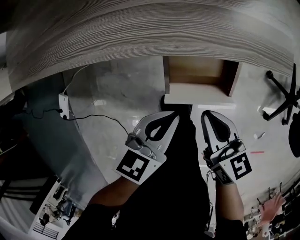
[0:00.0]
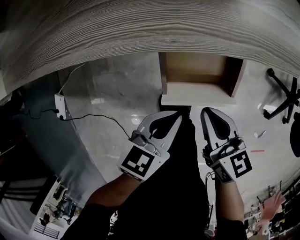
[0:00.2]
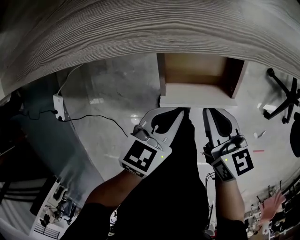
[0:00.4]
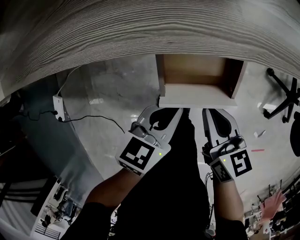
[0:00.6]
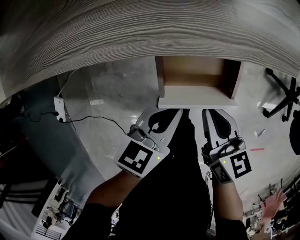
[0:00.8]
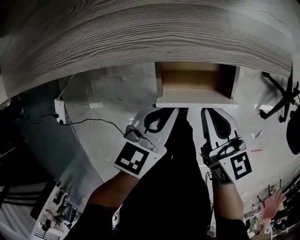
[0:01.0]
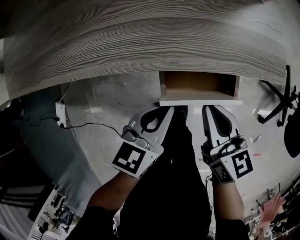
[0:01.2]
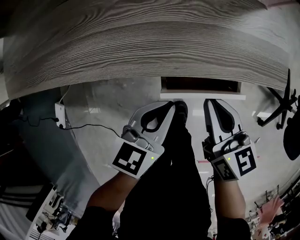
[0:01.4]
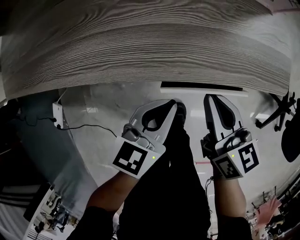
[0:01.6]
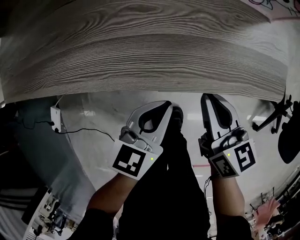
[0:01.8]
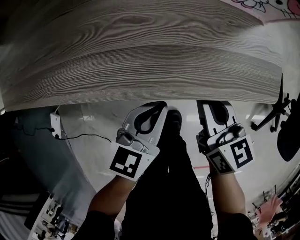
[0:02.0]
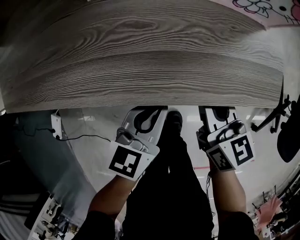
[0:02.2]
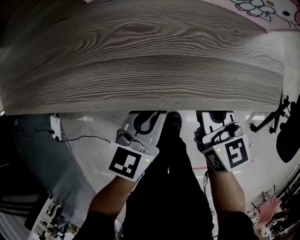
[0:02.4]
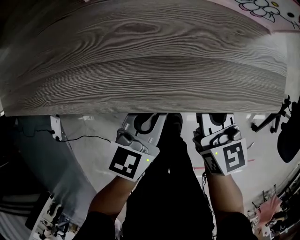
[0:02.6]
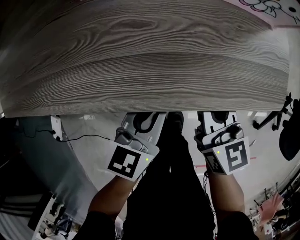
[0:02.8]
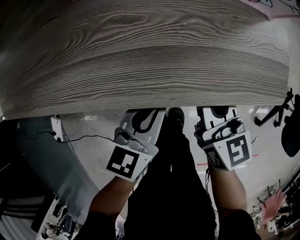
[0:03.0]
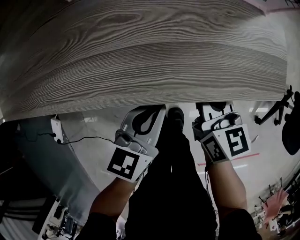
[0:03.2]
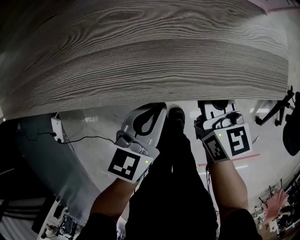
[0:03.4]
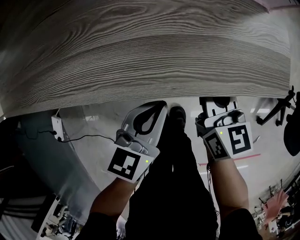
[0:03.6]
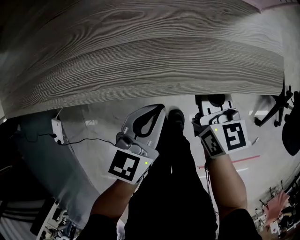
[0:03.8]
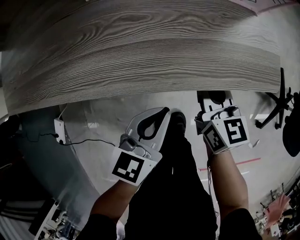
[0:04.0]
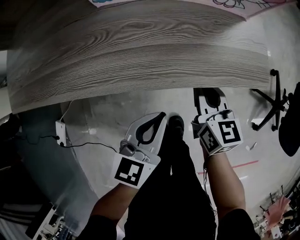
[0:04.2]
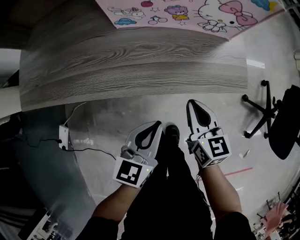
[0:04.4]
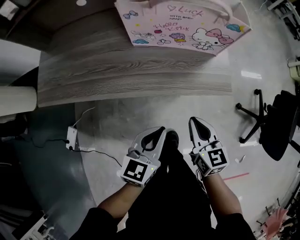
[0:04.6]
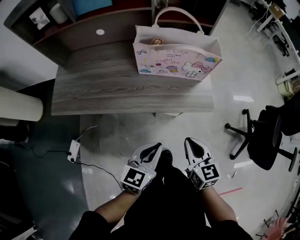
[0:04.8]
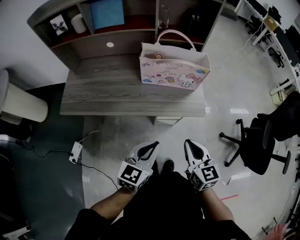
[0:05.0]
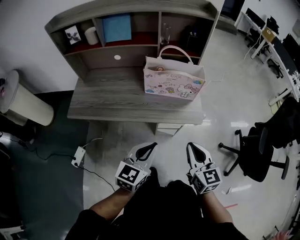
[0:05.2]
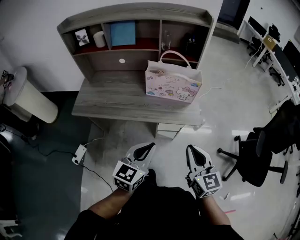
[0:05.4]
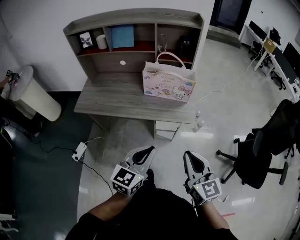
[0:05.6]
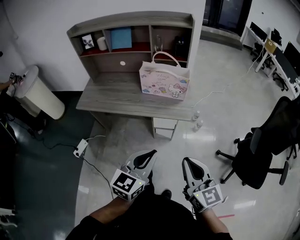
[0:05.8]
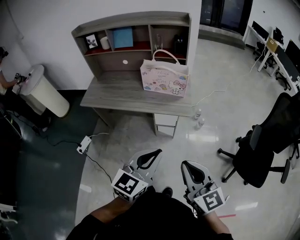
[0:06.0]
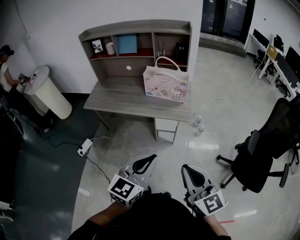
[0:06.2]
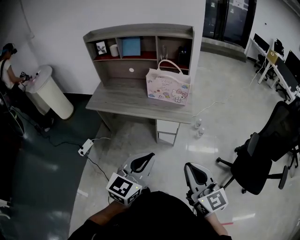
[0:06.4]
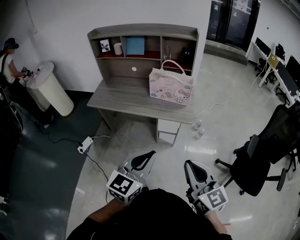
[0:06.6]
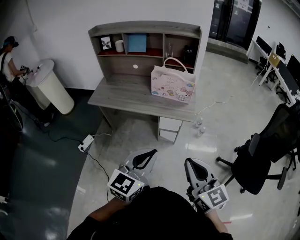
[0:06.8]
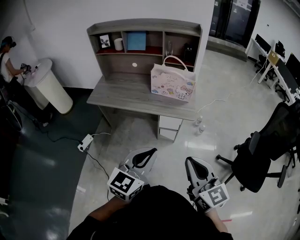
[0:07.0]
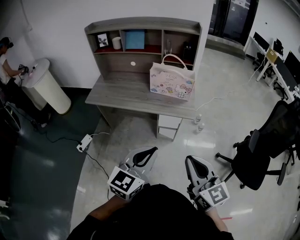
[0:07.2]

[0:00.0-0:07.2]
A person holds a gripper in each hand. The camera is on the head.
0.0 to 1.4 s: Both grippers travel together forward, approximately 5 cm.
1.4 to 2.8 s: Both grippers move forward, about 5 cm.
2.8 to 4.4 s: The left gripper heads upward and backward, covering roughly 10 cm. Meanwhile the right gripper heads backward, covering some 5 cm.
4.4 to 5.8 s: Both grippers travel together upward and backward, approximately 50 cm. The right gripper rotates roughly 30 degrees.
5.8 to 7.2 s: The left gripper travels backward and upward by about 10 cm. The right gripper shifts about 5 cm backward.

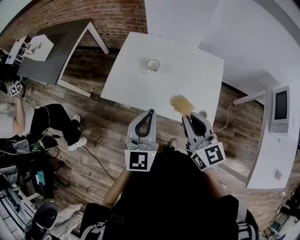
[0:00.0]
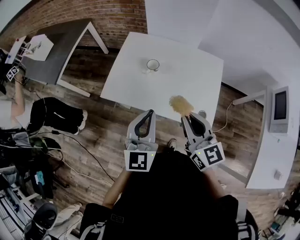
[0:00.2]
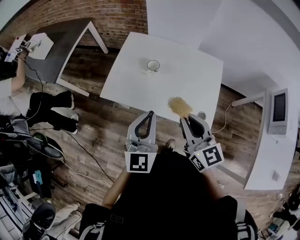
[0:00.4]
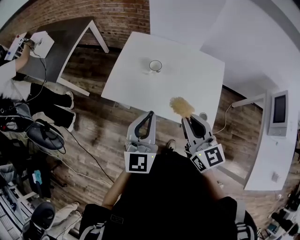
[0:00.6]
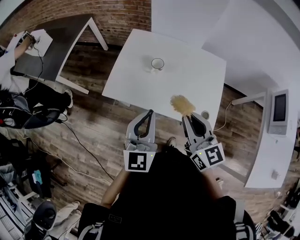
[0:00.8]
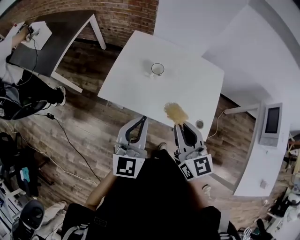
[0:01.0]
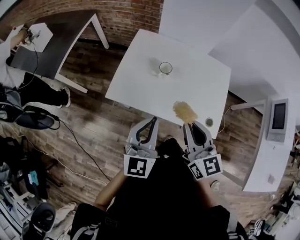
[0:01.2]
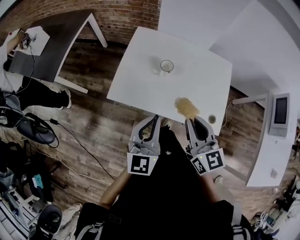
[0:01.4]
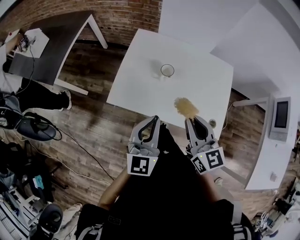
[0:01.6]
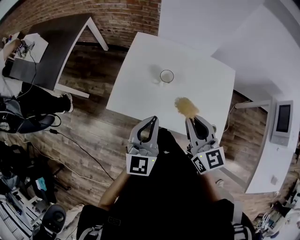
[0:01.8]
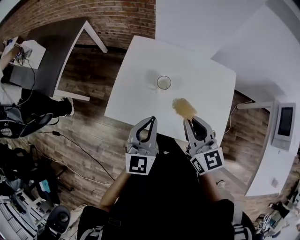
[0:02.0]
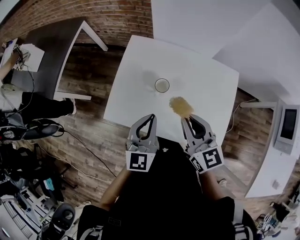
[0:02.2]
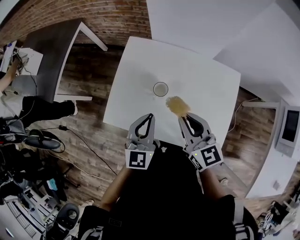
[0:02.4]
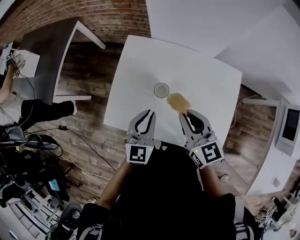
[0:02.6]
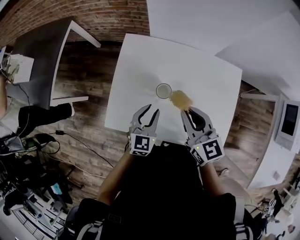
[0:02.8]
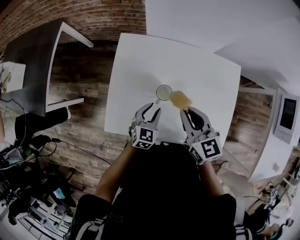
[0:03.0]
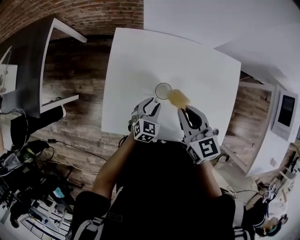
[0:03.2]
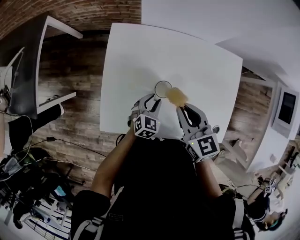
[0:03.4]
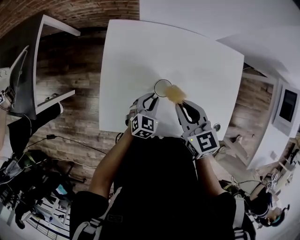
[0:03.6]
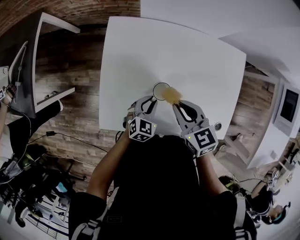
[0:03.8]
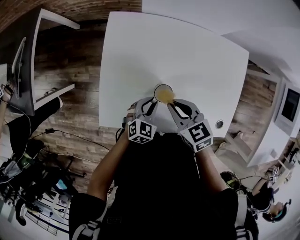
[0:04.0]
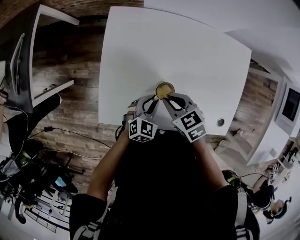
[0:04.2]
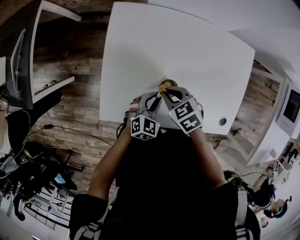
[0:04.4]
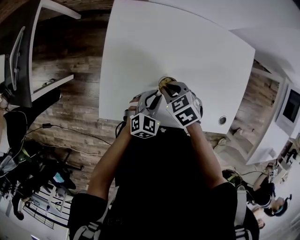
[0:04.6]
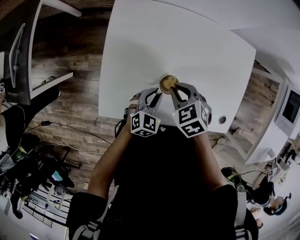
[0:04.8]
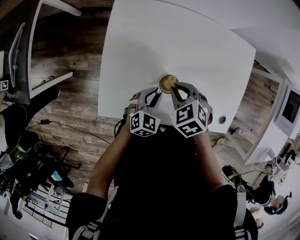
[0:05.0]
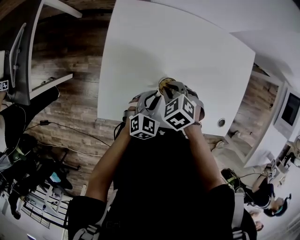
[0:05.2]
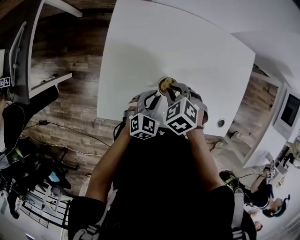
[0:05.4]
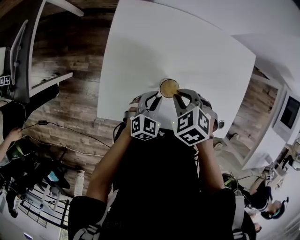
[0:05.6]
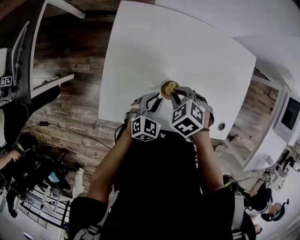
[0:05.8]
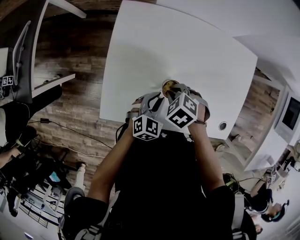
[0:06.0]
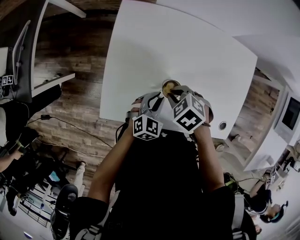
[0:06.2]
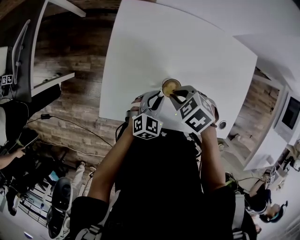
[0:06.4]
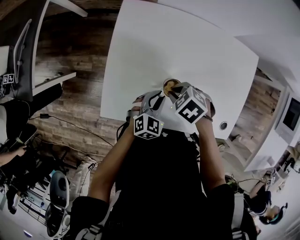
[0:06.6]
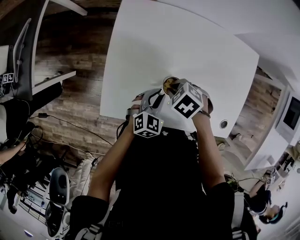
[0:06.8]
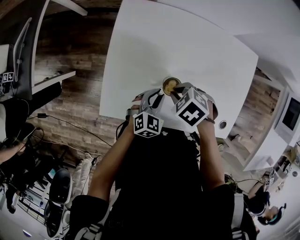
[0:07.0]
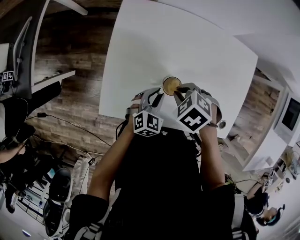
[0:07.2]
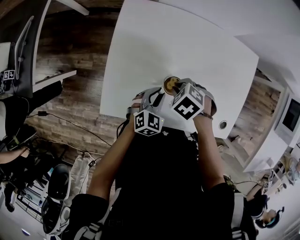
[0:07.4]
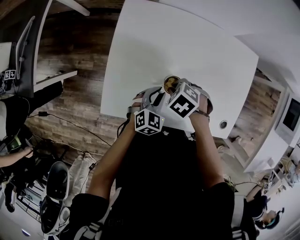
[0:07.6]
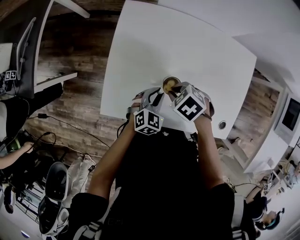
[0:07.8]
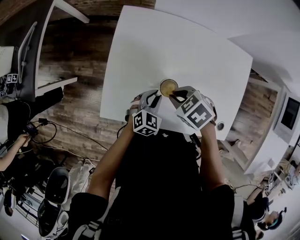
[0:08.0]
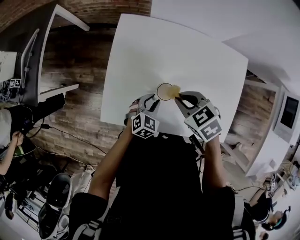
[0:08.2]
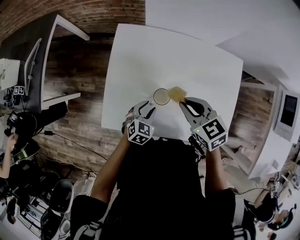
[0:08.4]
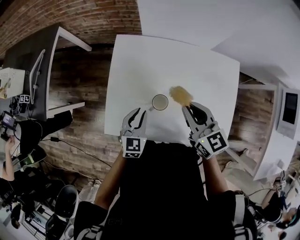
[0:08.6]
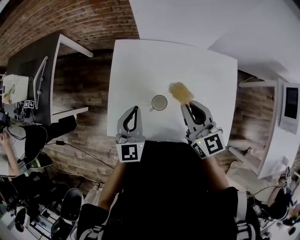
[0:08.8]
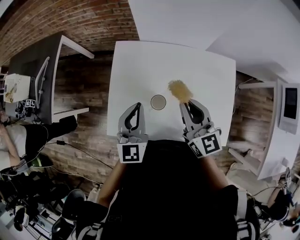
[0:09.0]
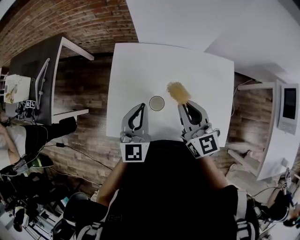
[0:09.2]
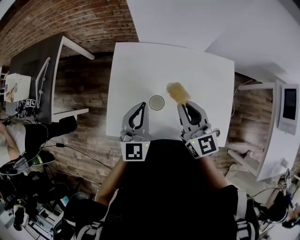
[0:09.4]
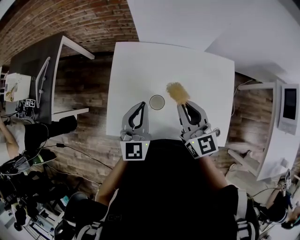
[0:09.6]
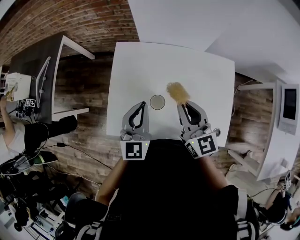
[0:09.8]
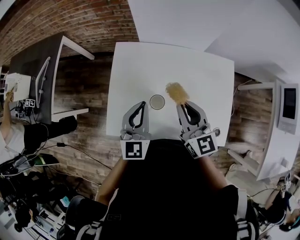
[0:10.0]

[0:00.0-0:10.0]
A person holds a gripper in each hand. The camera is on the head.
0.0 to 1.4 s: The grippers both shift to the left by some 10 cm.
1.4 to 2.8 s: The right gripper shifts about 20 cm forward, while the left gripper moves forward and downward, some 25 cm, turns by about 20 degrees, and opens.
2.8 to 4.2 s: The right gripper moves downward and to the left, roughly 20 cm, and tips its fingers downward by approximately 30 degrees. Meanwhile the left gripper shifts about 15 cm downward, and swivels roughly 30 degrees.
4.2 to 5.8 s: The right gripper swings up and down, about 5 cm each way, with 3 reversals, and changes its angle by roughly 30 degrees.
5.8 to 7.2 s: The grippers stay close to where they were, moving slightly.
7.2 to 8.6 s: The right gripper is displaced upward by some 15 cm, and angles its fingers upward, by about 60 degrees. Meanwhile the left gripper heads upward, covering some 10 cm, and rotates about 20 degrees.
8.6 to 10.0 s: The left gripper is displaced upward by about 15 cm, turns by some 20 degrees, and closes up.

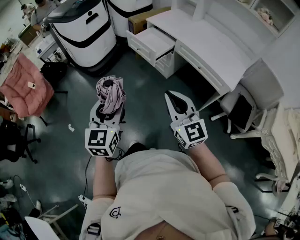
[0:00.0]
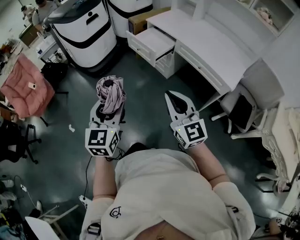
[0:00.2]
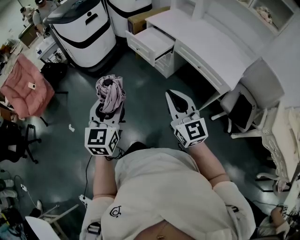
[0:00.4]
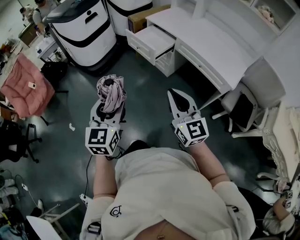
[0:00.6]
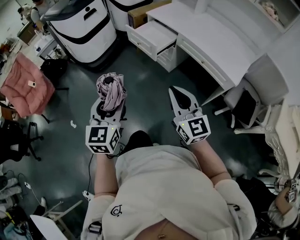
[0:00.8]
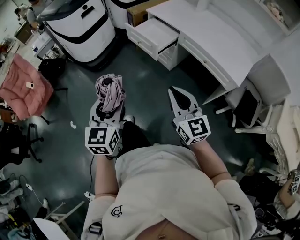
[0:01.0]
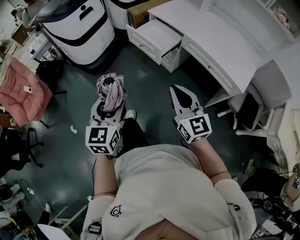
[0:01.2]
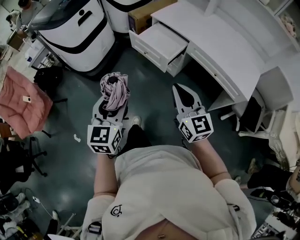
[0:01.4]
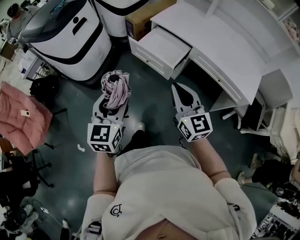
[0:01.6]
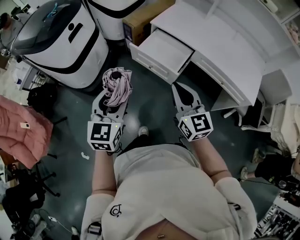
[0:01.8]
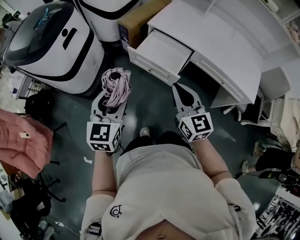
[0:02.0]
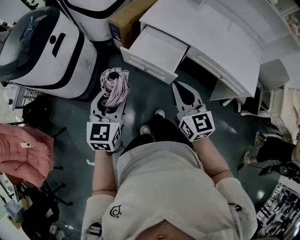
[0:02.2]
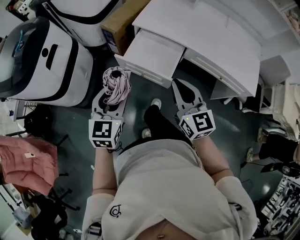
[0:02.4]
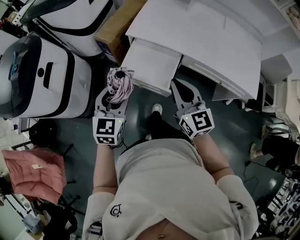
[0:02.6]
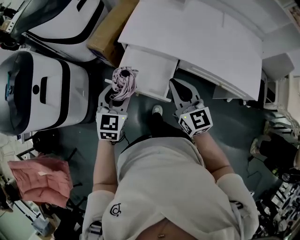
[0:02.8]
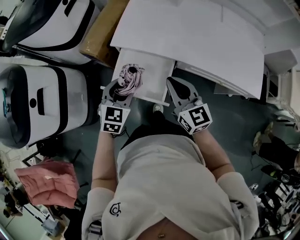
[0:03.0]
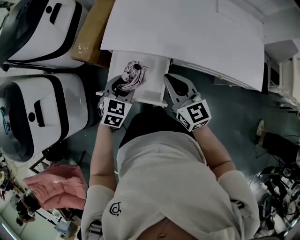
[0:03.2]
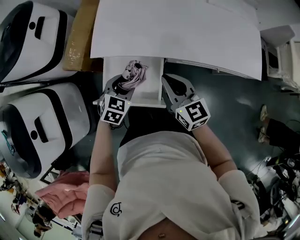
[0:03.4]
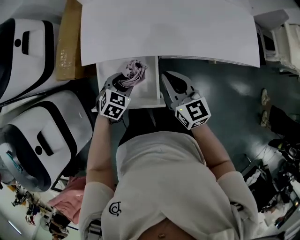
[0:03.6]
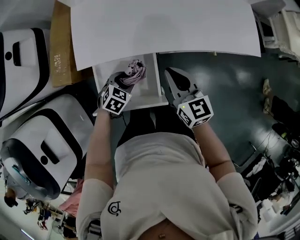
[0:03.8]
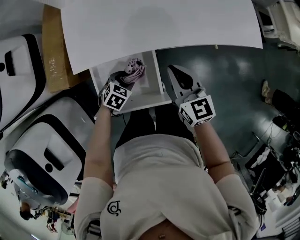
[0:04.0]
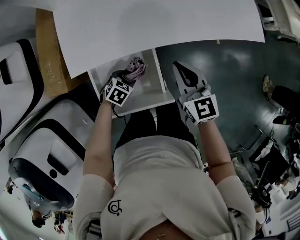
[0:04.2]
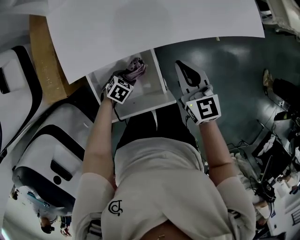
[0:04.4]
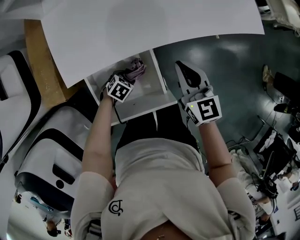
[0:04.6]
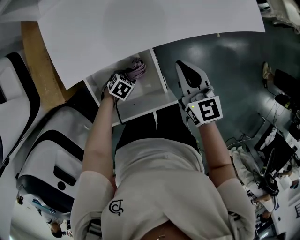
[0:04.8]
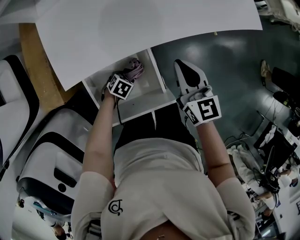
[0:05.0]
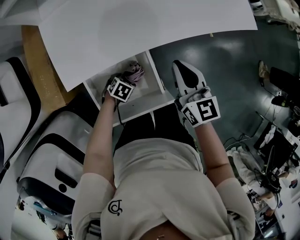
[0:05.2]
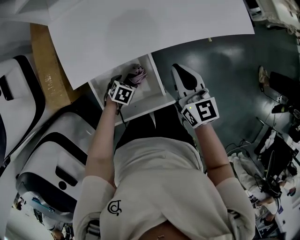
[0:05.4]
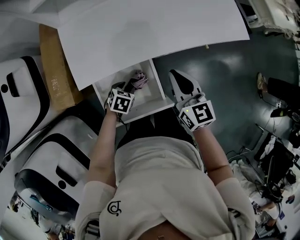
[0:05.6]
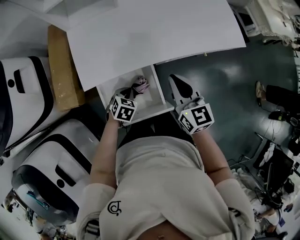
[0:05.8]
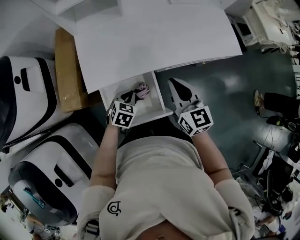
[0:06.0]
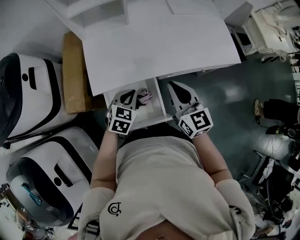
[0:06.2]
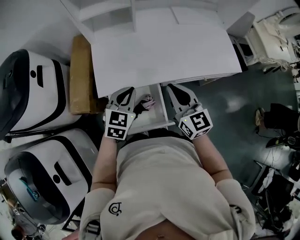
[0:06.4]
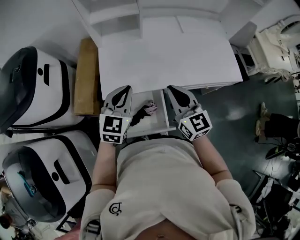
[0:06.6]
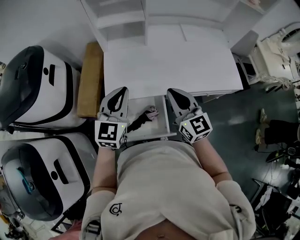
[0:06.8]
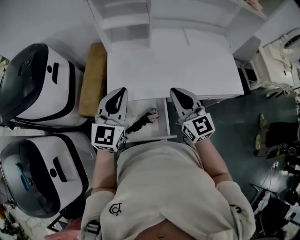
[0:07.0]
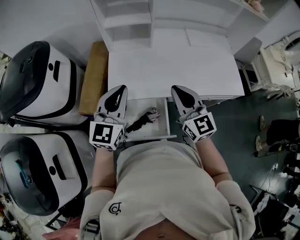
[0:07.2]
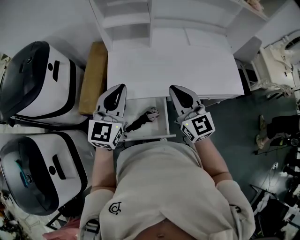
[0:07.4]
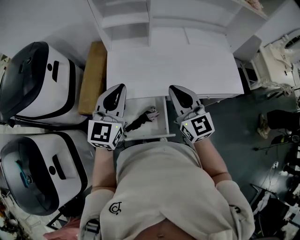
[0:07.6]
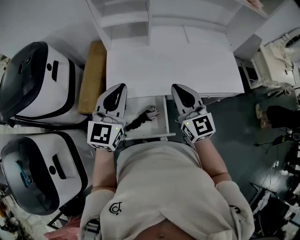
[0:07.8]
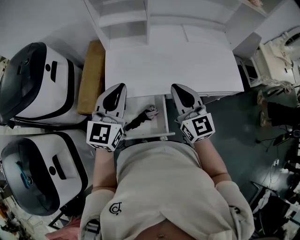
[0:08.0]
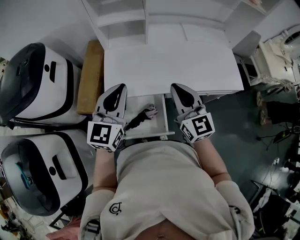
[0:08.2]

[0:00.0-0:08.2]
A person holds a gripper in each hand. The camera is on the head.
0.0 to 1.6 s: The grippers both shift forward by some 30 cm.
1.6 to 3.2 s: The right gripper shifts by about 40 cm, and changes its angle by approximately 20 degrees, while the left gripper changes place by some 50 cm, and turns by some 50 degrees.
3.2 to 5.0 s: The right gripper shifts some 10 cm downward, and swivels roughly 40 degrees, while the left gripper goes approximately 30 cm downward, and rotates roughly 50 degrees.
5.0 to 6.6 s: The left gripper travels upward by about 50 cm, tilts its fingers some 50 degrees upward, and closes up. The right gripper moves upward, about 20 cm, and turns by approximately 20 degrees.
6.6 to 8.2 s: The left gripper heads upward, covering about 10 cm.
